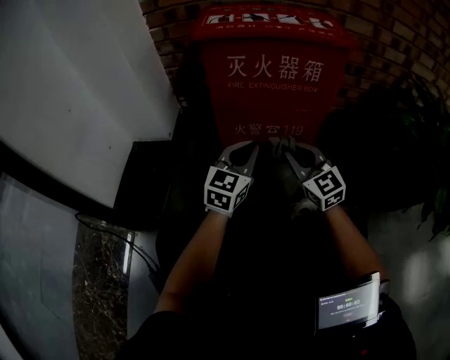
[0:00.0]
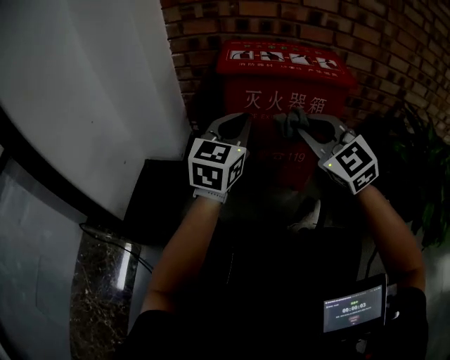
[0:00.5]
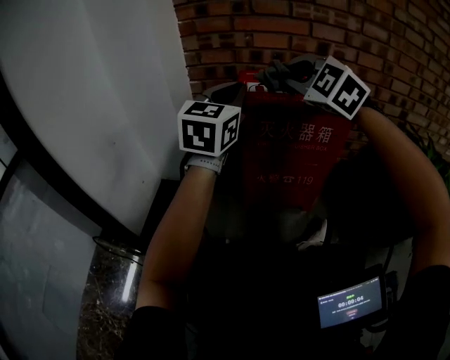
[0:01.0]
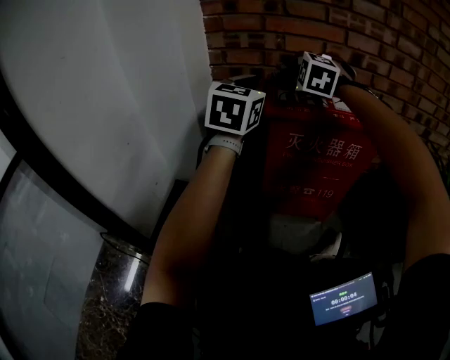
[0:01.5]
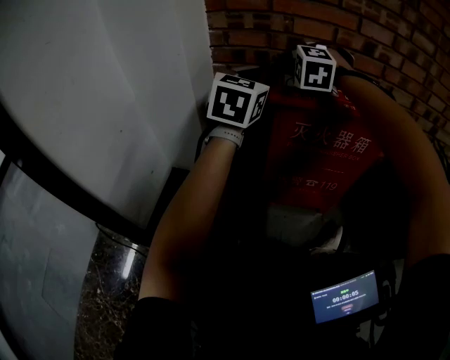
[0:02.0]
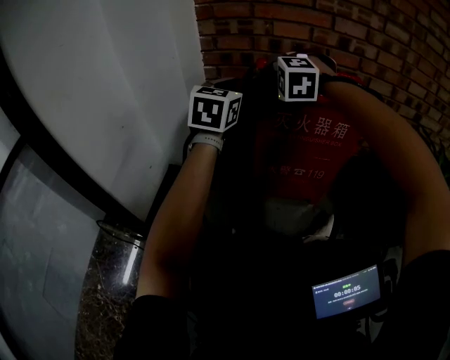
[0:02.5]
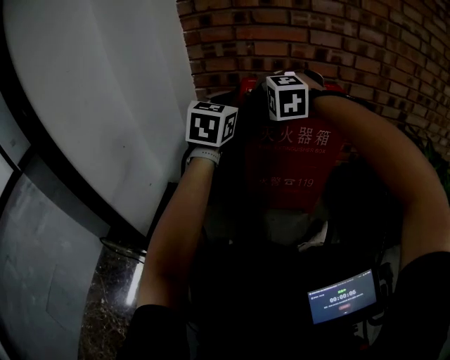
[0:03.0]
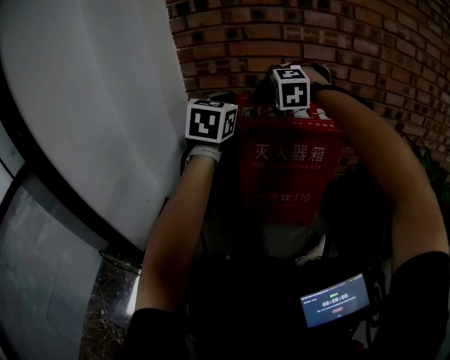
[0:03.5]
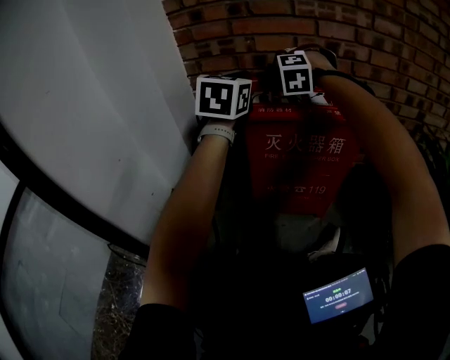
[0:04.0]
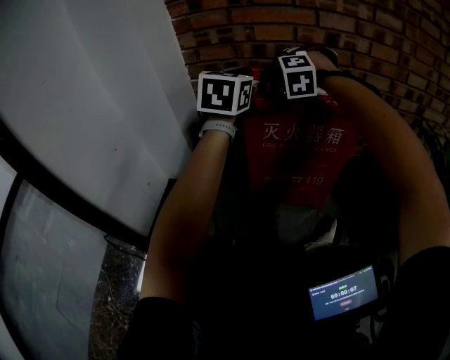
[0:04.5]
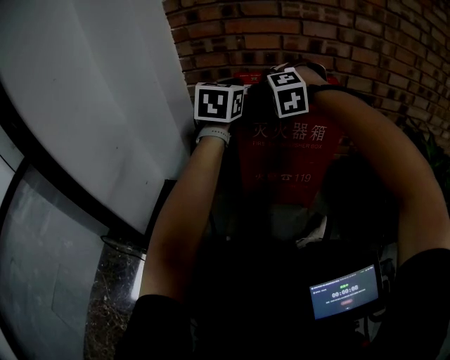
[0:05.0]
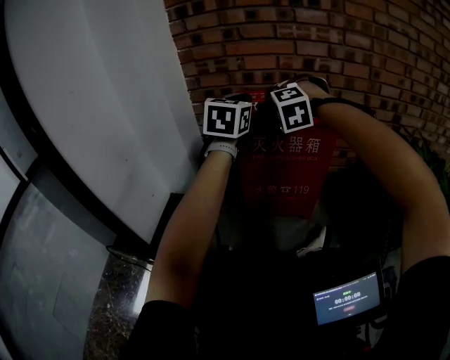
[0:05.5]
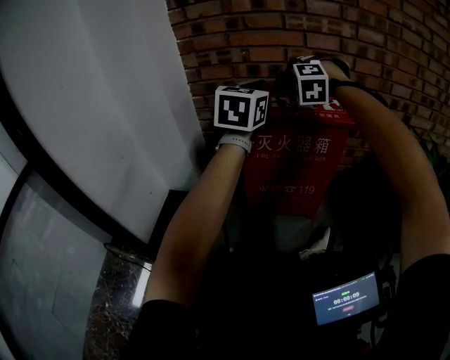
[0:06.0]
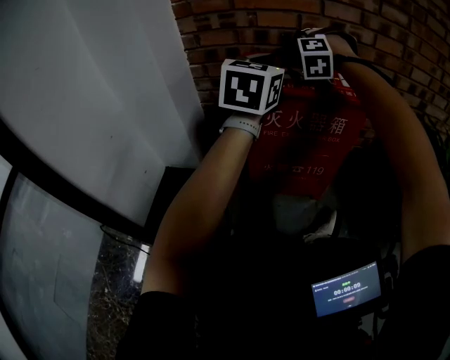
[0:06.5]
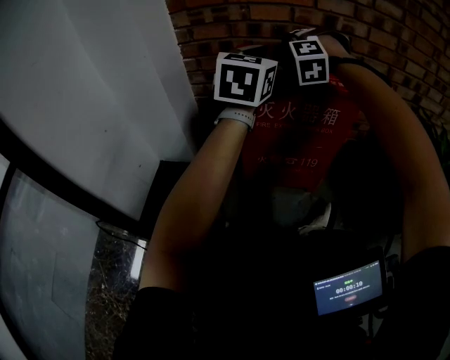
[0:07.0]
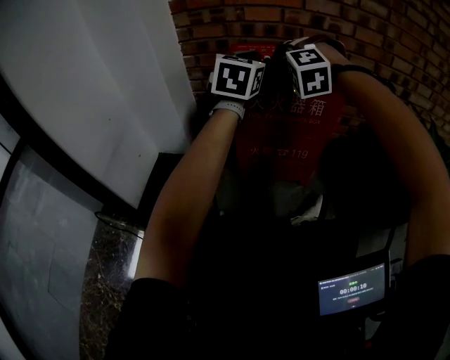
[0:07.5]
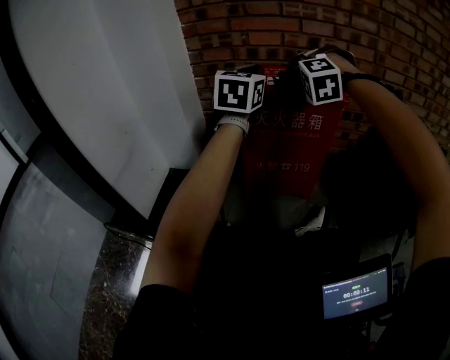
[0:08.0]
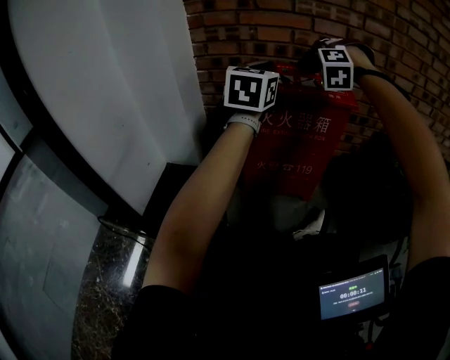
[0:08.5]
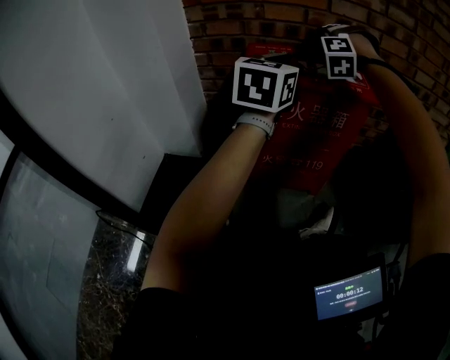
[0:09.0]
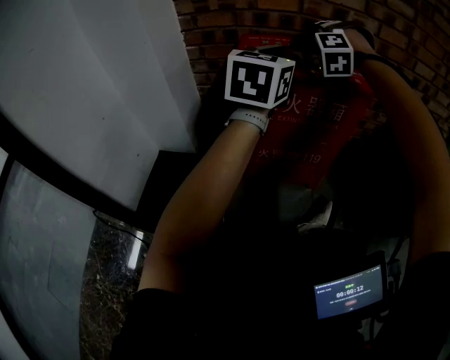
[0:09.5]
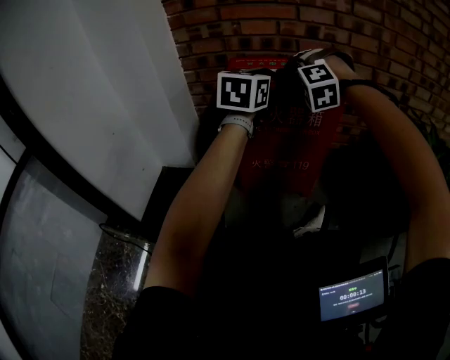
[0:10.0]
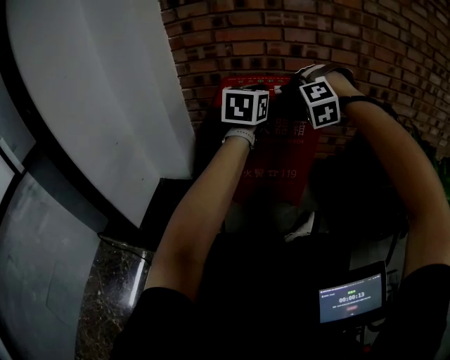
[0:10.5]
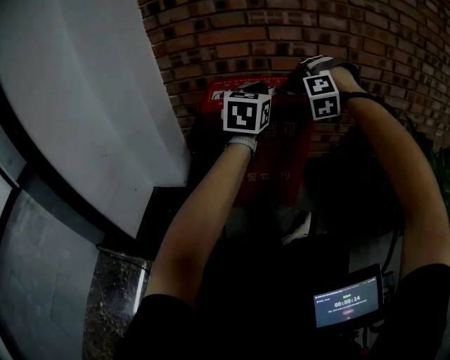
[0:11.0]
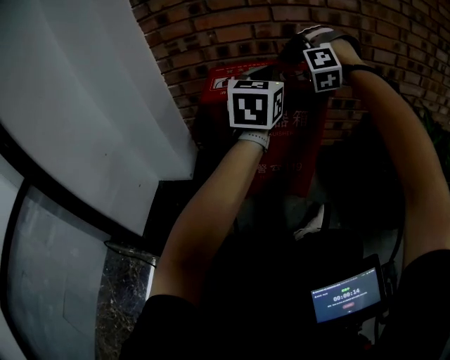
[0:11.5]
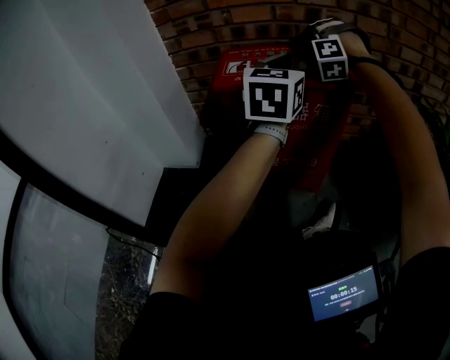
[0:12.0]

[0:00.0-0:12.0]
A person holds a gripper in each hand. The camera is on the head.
0:00.0 to 0:02.0: The left gripper goes some 30 cm upward.
0:02.0 to 0:04.0: The left gripper changes place by about 5 cm.
0:04.0 to 0:06.0: The left gripper shifts by some 10 cm.
0:08.0 to 0:10.0: The left gripper ends up some 10 cm from where it was.
0:10.0 to 0:12.0: The left gripper changes place by some 5 cm.

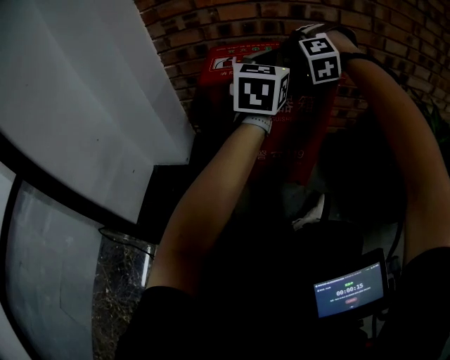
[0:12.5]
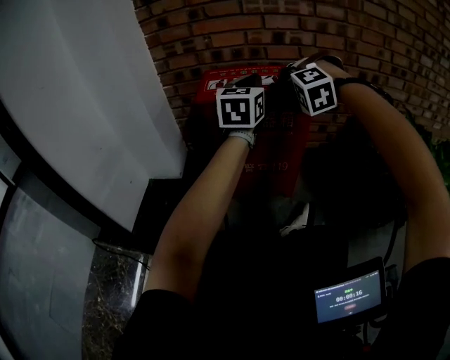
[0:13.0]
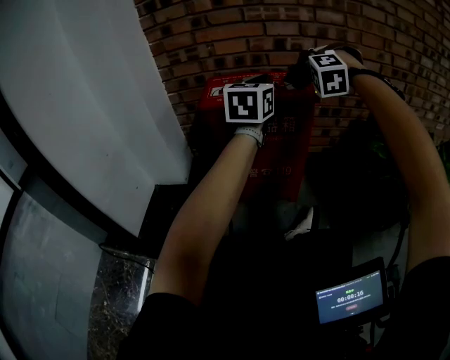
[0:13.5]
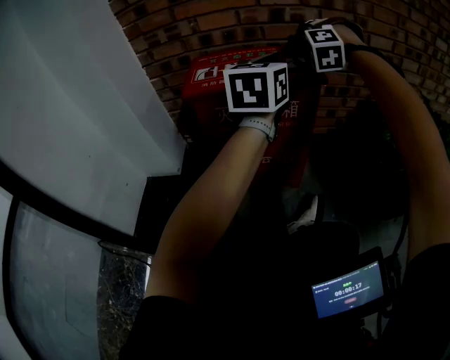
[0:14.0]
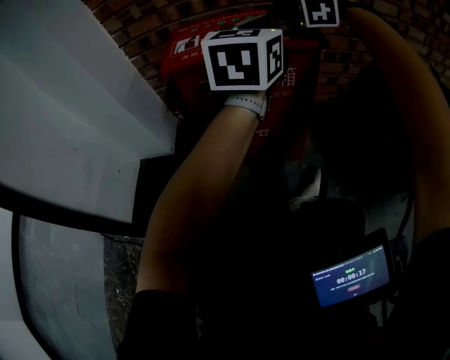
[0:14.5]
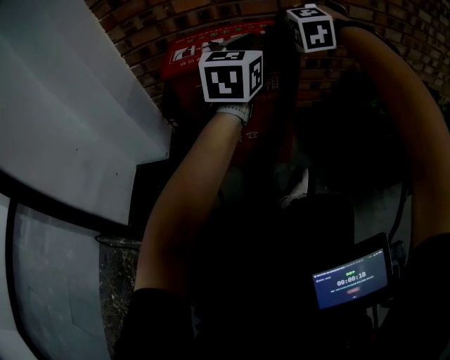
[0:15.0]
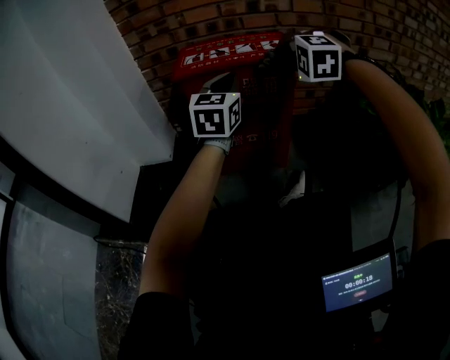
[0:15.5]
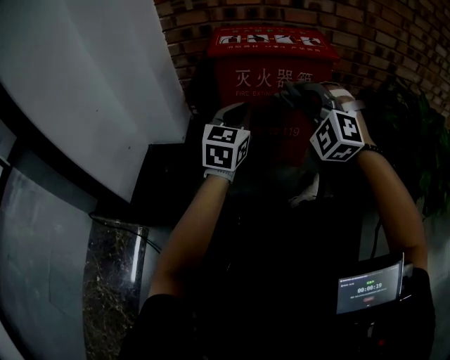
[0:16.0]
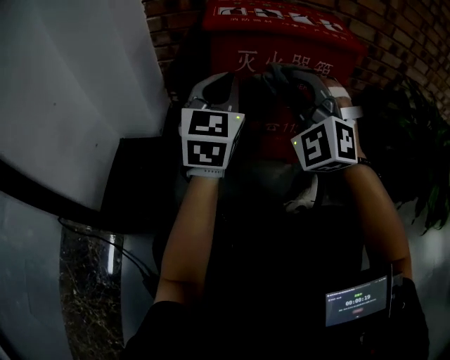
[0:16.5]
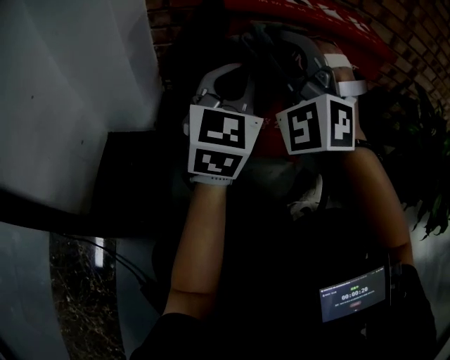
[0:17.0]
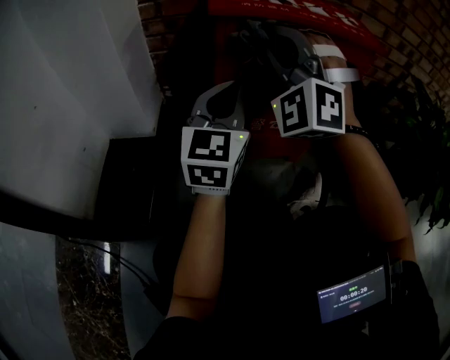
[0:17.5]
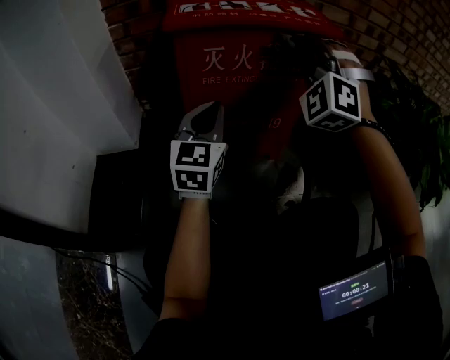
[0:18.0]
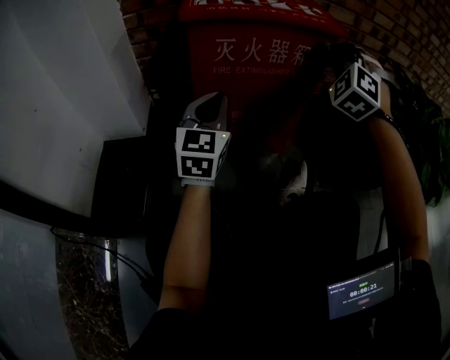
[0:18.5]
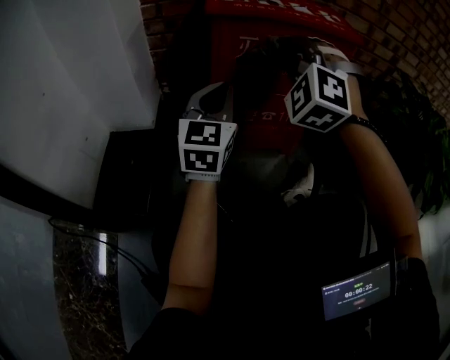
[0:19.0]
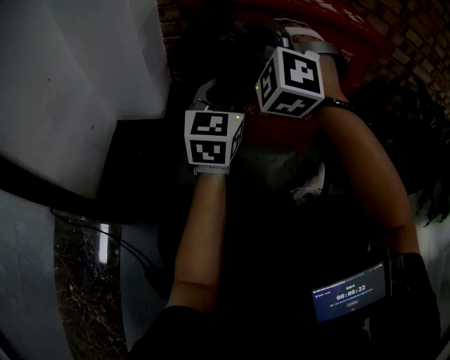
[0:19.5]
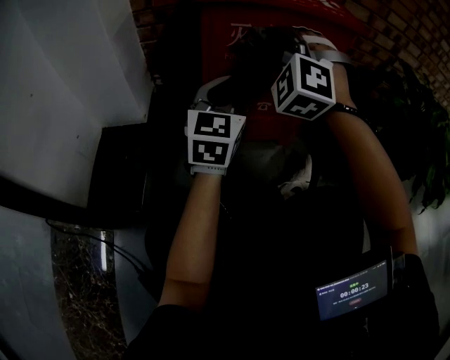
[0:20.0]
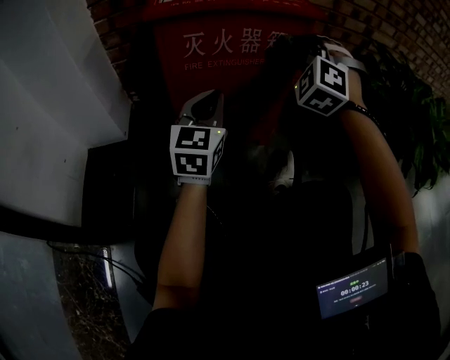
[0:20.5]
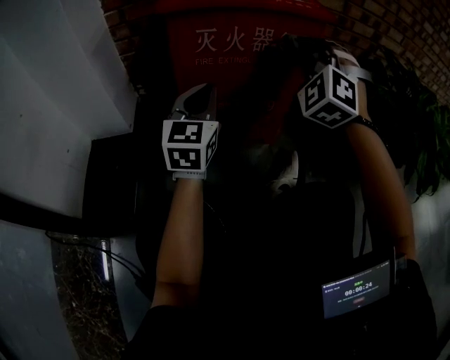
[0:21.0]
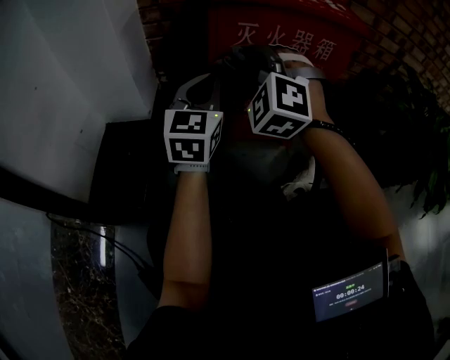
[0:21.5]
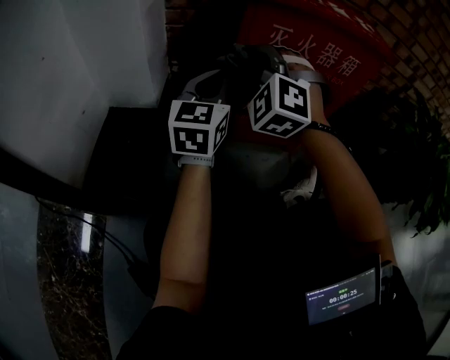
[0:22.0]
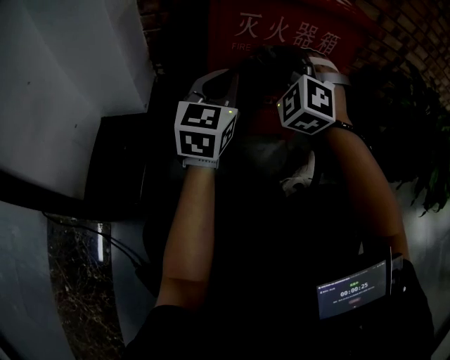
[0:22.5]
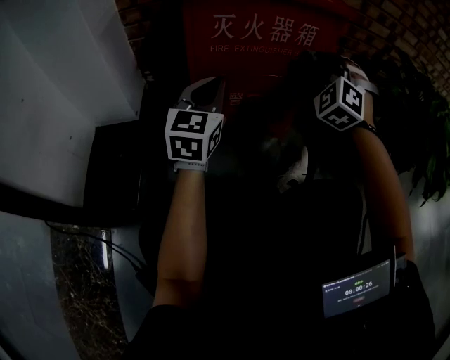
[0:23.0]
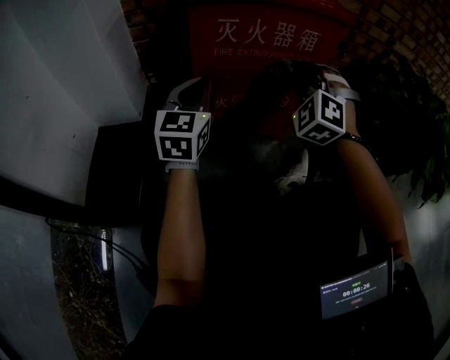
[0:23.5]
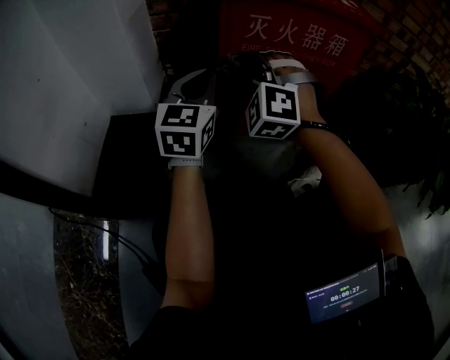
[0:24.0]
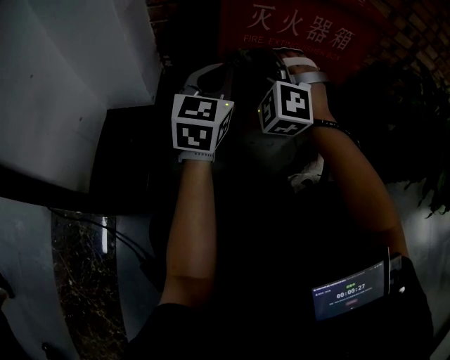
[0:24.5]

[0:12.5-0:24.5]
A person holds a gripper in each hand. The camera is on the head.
0:12.5 to 0:14.5: The left gripper moves about 5 cm.
0:14.5 to 0:16.5: The left gripper moves approximately 25 cm.
0:16.5 to 0:18.5: The left gripper goes some 10 cm downward.
0:18.5 to 0:20.5: The left gripper changes place by roughly 5 cm.

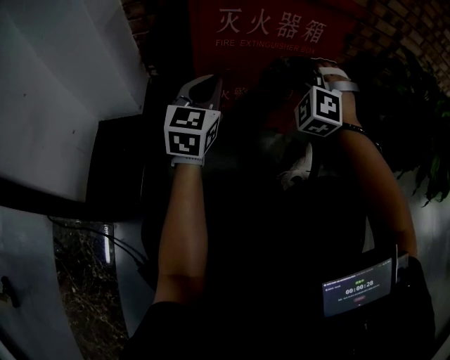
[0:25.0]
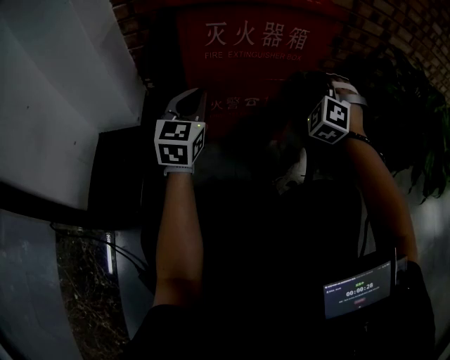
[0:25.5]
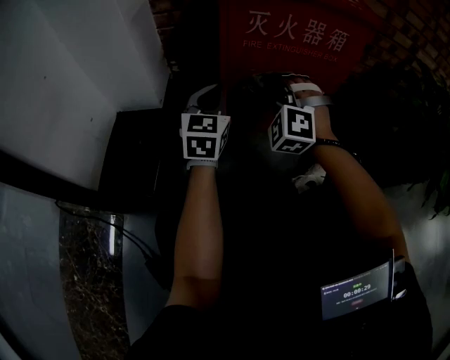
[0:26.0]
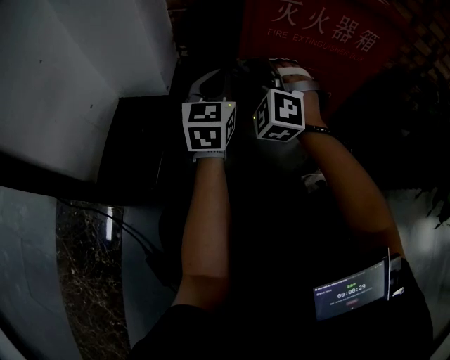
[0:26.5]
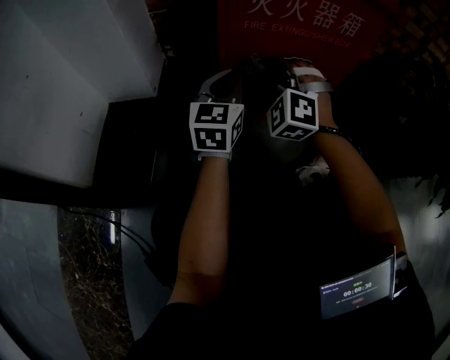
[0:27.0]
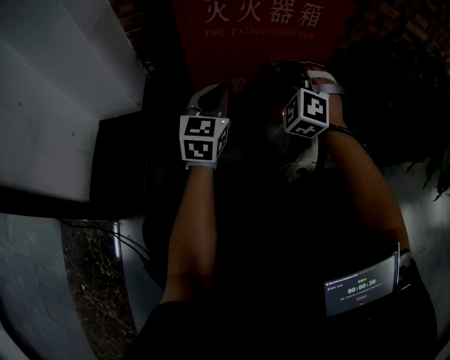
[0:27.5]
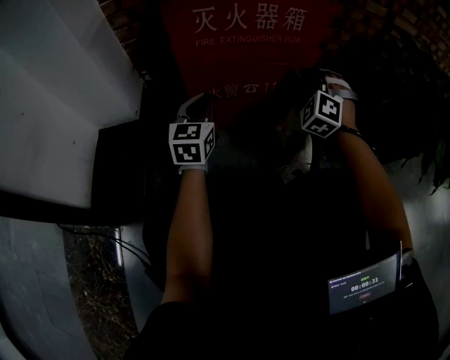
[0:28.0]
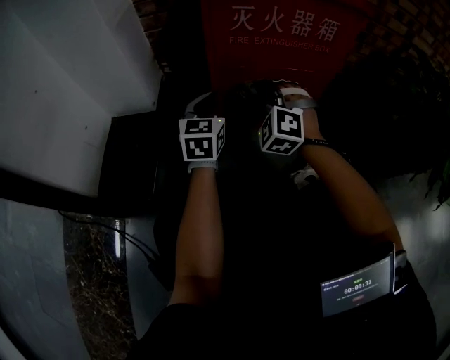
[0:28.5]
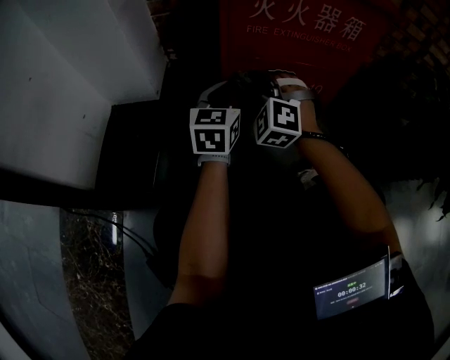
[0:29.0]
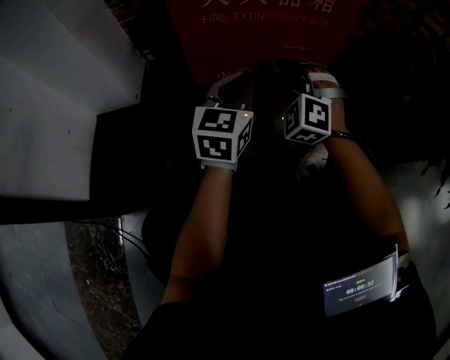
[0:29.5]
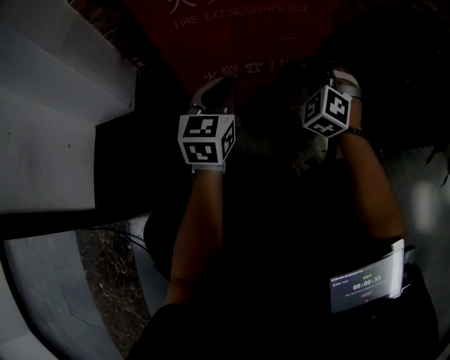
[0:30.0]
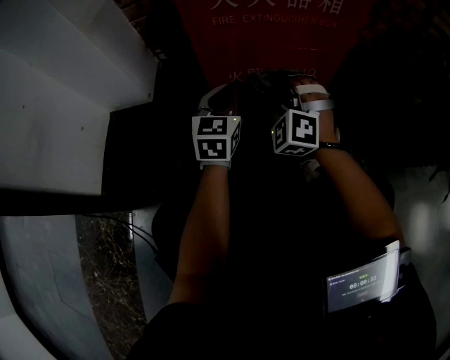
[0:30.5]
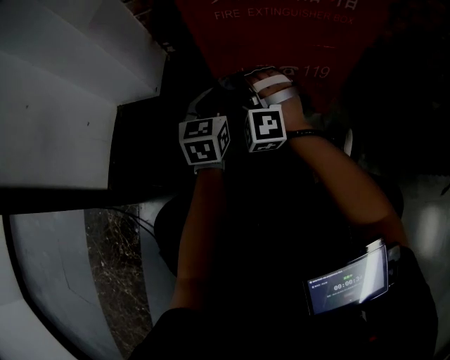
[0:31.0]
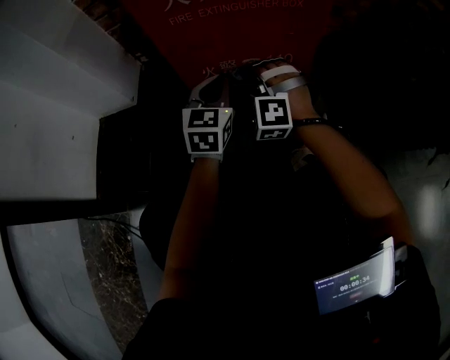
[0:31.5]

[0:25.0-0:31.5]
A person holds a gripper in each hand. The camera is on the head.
0:27.0 to 0:29.5: The left gripper changes place by approximately 10 cm.
0:29.5 to 0:31.5: The left gripper travels downward by roughly 5 cm.
